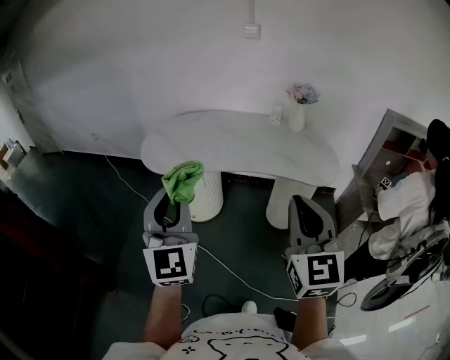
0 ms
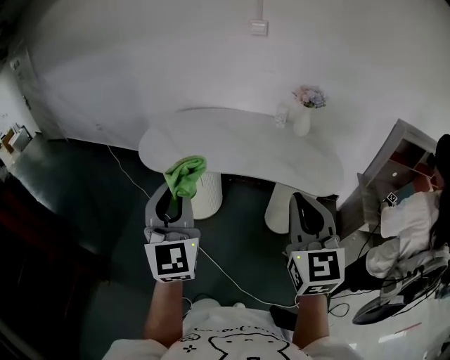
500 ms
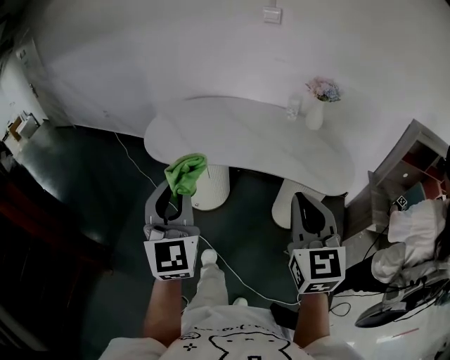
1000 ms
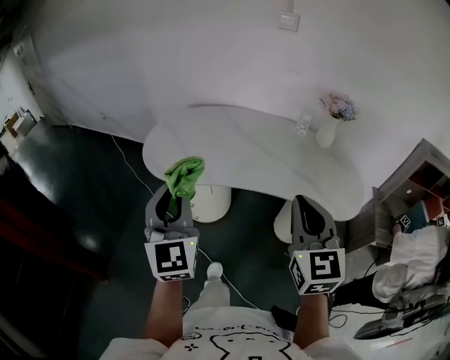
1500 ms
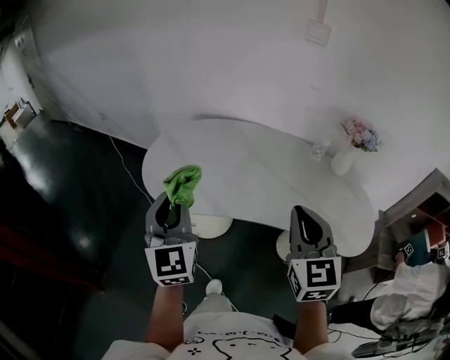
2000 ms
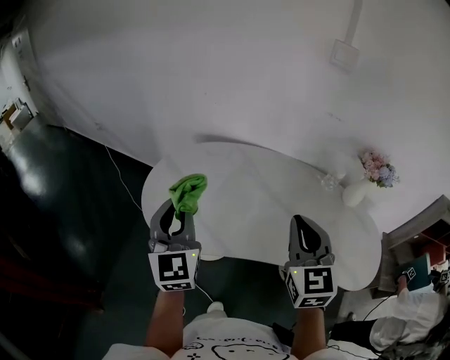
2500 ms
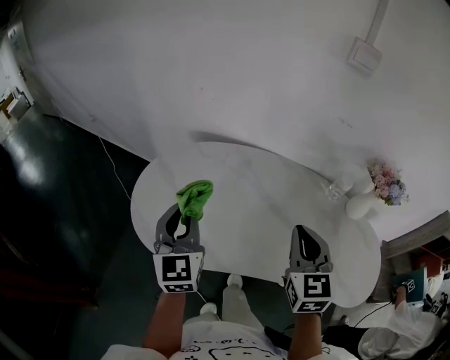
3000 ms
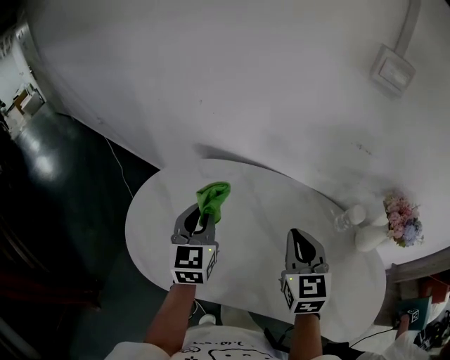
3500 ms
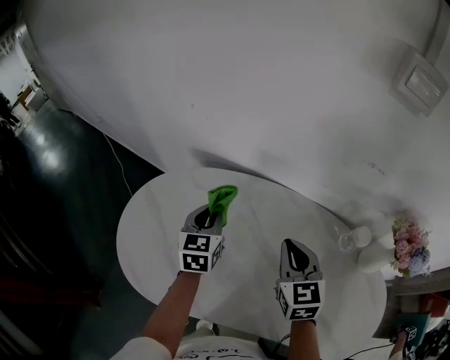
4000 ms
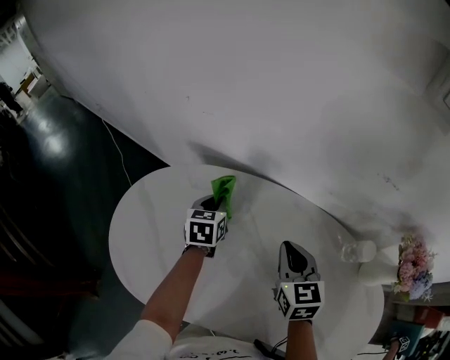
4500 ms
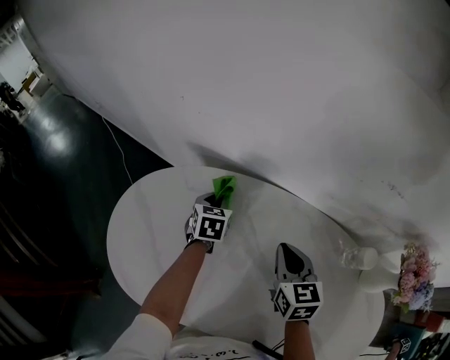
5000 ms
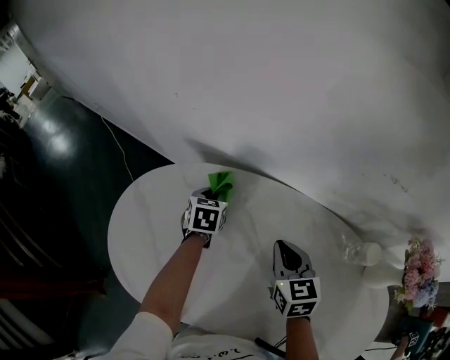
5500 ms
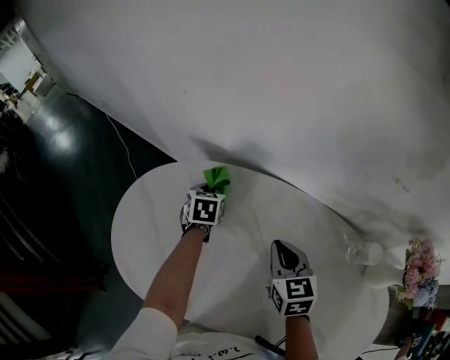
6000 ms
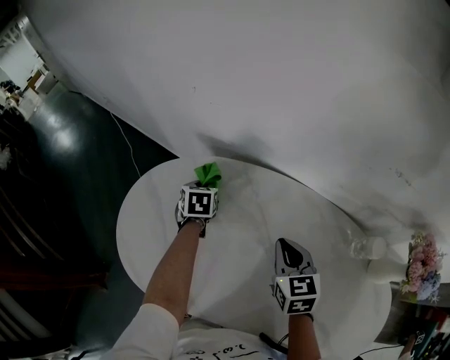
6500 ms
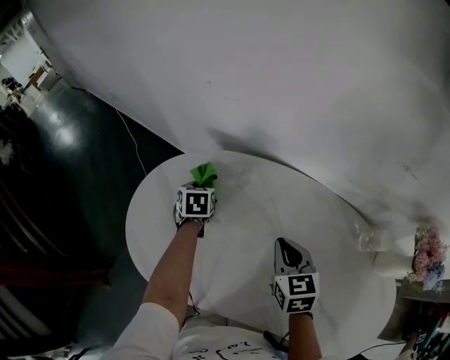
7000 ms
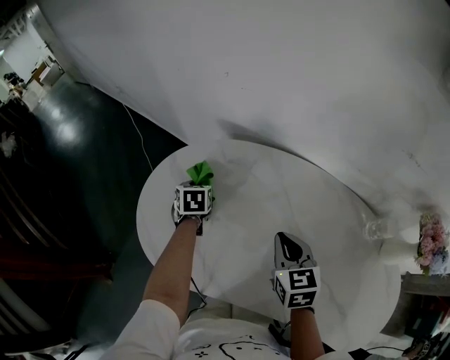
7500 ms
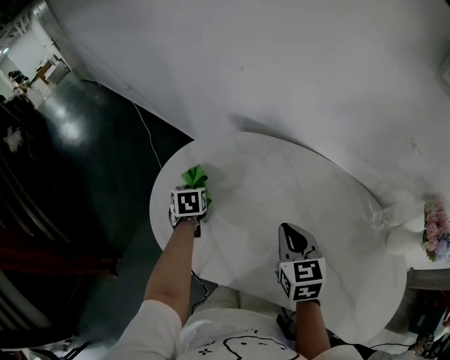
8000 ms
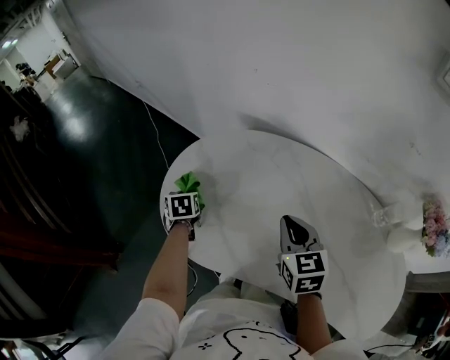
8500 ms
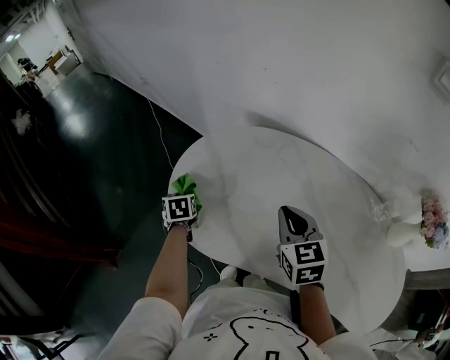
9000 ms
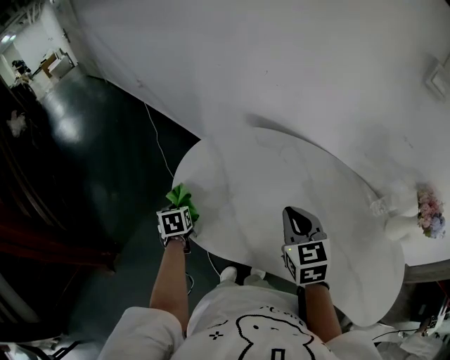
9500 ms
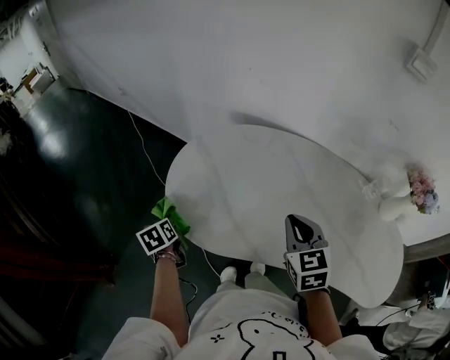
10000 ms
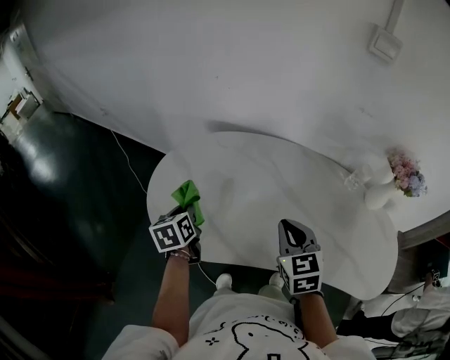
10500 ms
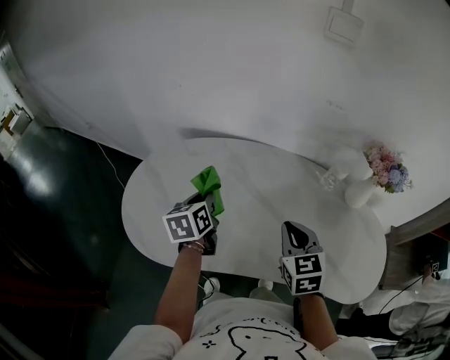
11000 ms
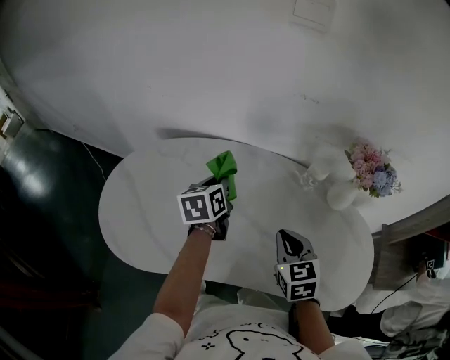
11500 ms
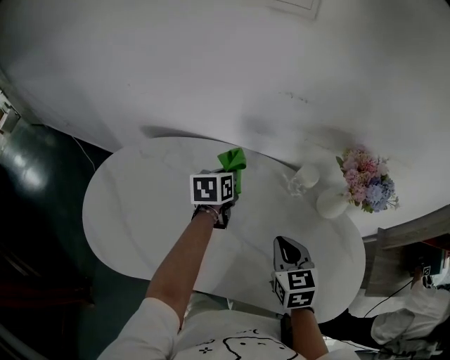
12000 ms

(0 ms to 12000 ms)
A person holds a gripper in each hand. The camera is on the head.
0 ms - 2000 ms: The two grippers go roughly 35 cm forward.
2000 ms - 4000 ms: The pair of grippers is taken forward, roughly 40 cm. The left gripper is displaced downward by about 20 cm, and changes its angle by roughly 30 degrees. The right gripper rotates about 20 degrees.
4000 ms - 6000 ms: The left gripper heads downward and forward, covering approximately 20 cm, and rotates approximately 30 degrees; the right gripper moves downward, roughly 10 cm.
6000 ms - 8000 ms: The right gripper is displaced to the left and backward by about 15 cm, while the left gripper heads to the left and backward, covering approximately 25 cm.
8000 ms - 10000 ms: The left gripper moves to the left and backward, approximately 25 cm, and swivels about 20 degrees; the right gripper goes some 10 cm backward and to the left.
10000 ms - 12000 ms: The right gripper changes place by some 35 cm, while the left gripper changes place by about 60 cm, and changes its angle by approximately 50 degrees.

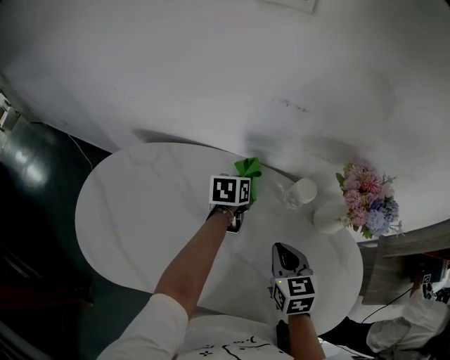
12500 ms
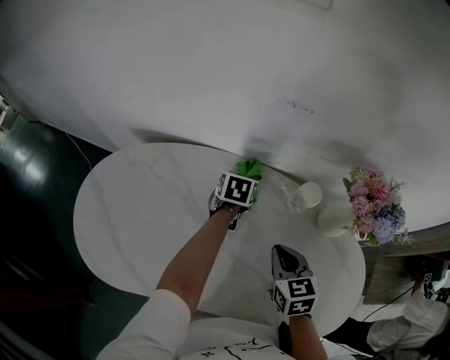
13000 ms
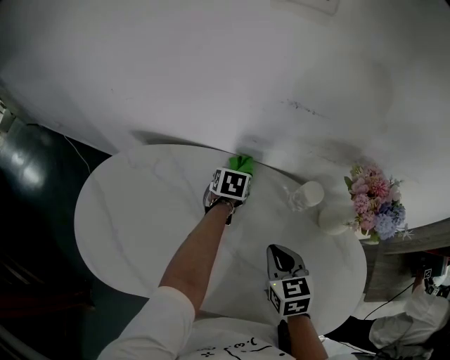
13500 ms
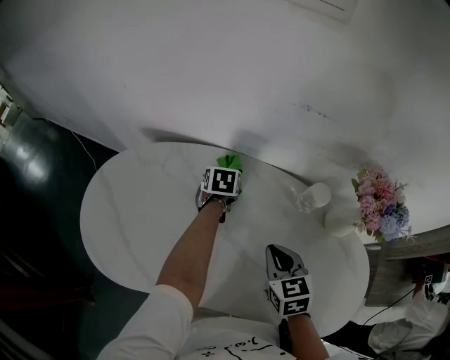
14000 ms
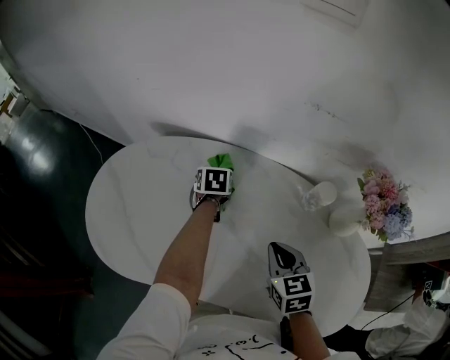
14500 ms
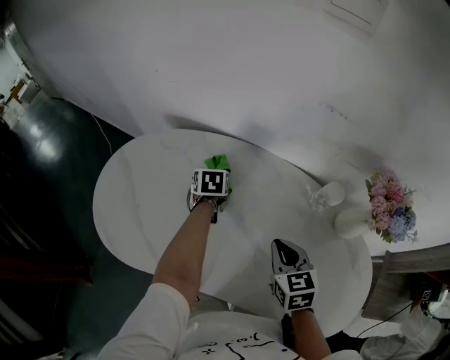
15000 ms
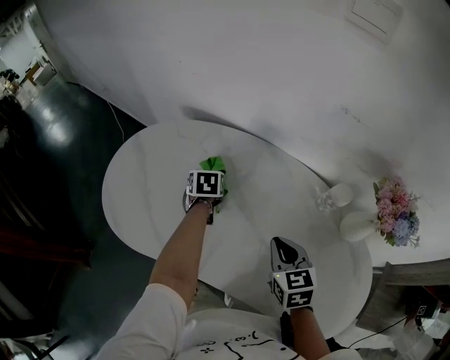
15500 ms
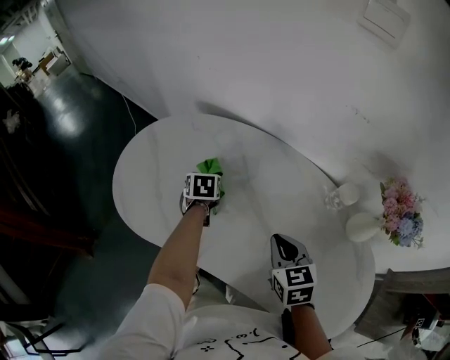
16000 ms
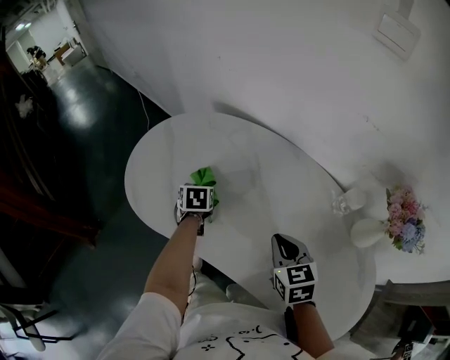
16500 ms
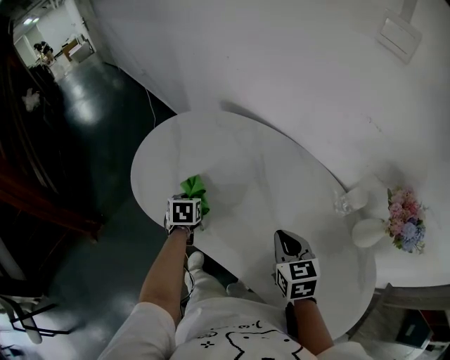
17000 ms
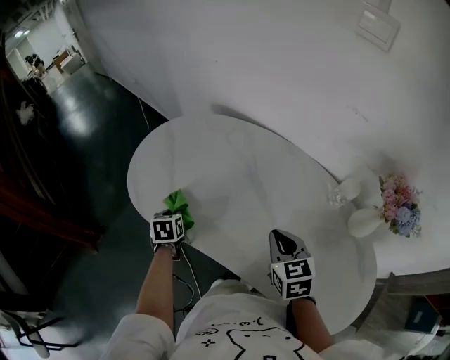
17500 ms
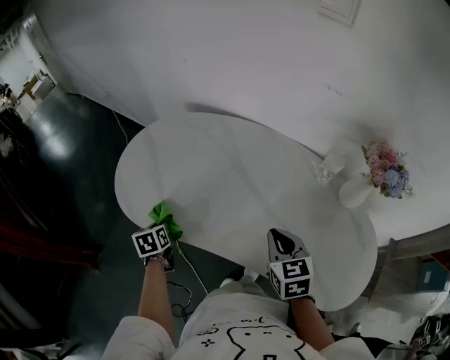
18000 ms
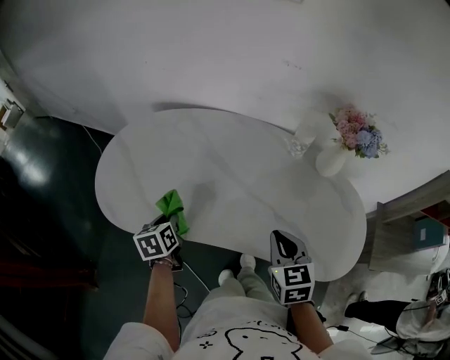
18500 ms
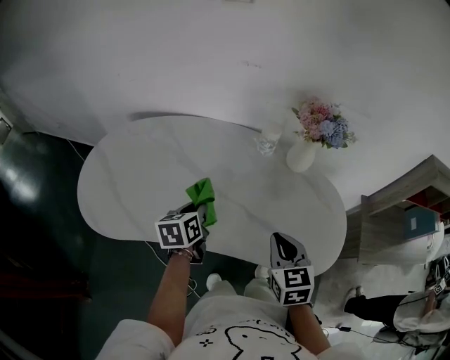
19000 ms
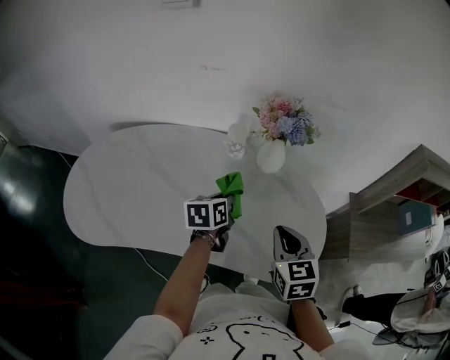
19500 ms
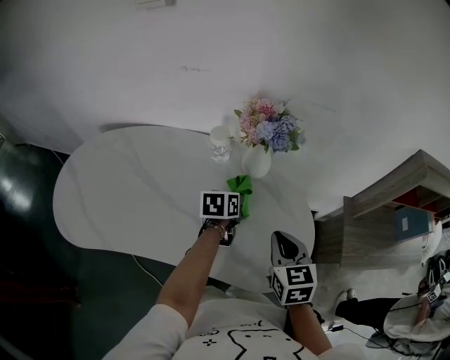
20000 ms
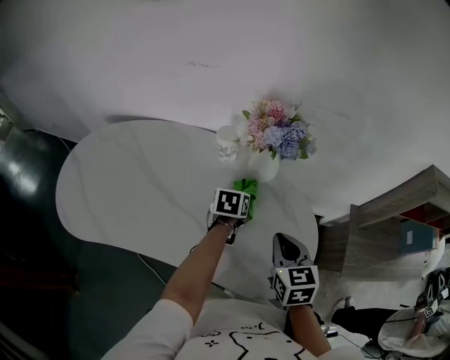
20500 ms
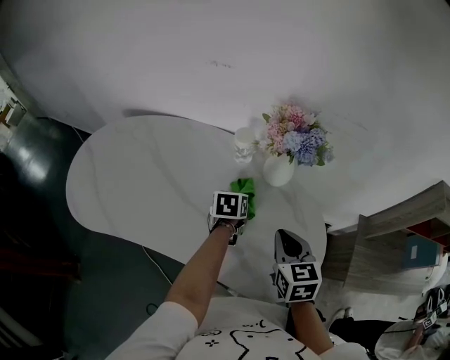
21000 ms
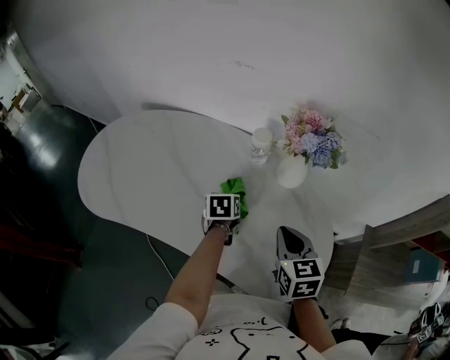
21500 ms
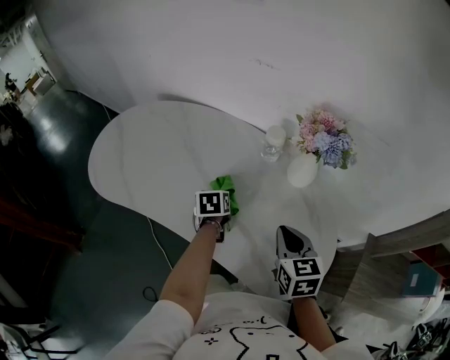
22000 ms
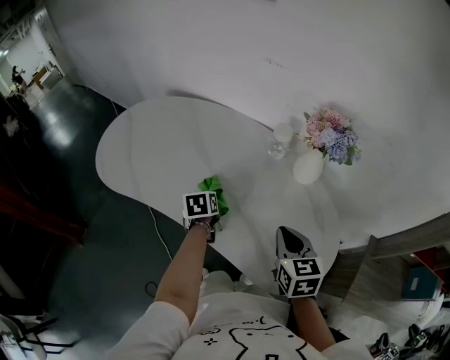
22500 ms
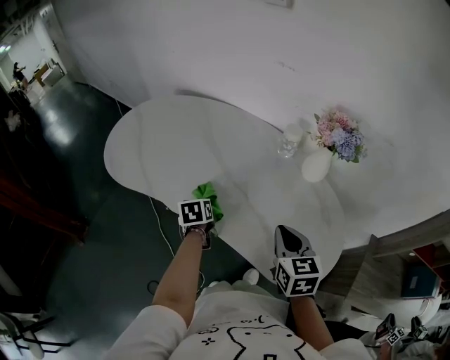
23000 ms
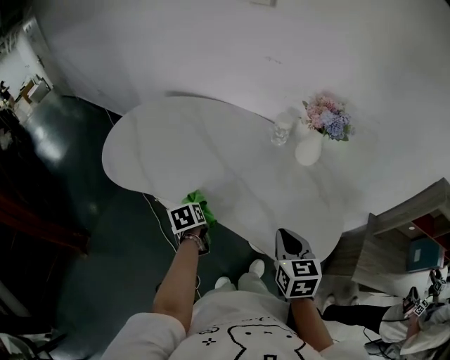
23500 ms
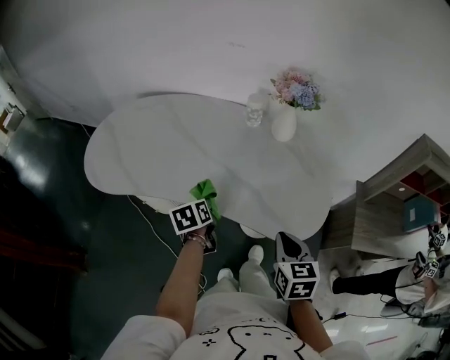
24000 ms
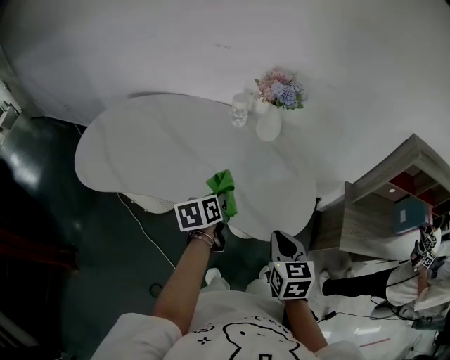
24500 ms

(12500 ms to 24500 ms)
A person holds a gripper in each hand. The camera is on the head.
12500 ms - 14500 ms: The right gripper goes roughly 5 cm to the left. Meanwhile the left gripper goes some 15 cm to the left, and rotates approximately 20 degrees.
14500 ms - 16500 ms: The right gripper heads to the left, covering roughly 10 cm. Meanwhile the left gripper travels to the left and backward by approximately 25 cm, and turns by approximately 20 degrees.
16500 ms - 18500 ms: The right gripper moves about 15 cm, and turns by about 30 degrees, while the left gripper shifts by about 15 cm.
18500 ms - 20500 ms: The left gripper changes place by some 50 cm, and turns by about 30 degrees; the right gripper moves approximately 25 cm.
20500 ms - 22500 ms: The right gripper changes place by approximately 10 cm, while the left gripper moves about 25 cm, and swivels roughly 40 degrees.
22500 ms - 24500 ms: The left gripper changes place by approximately 20 cm, and rotates approximately 30 degrees. The right gripper ends up about 20 cm from where it was.

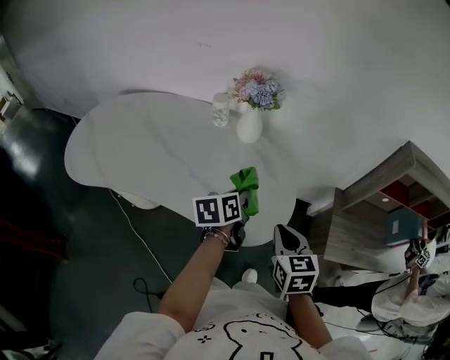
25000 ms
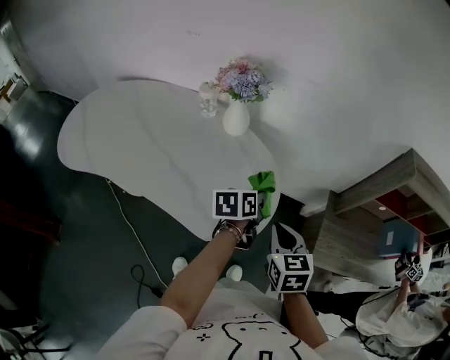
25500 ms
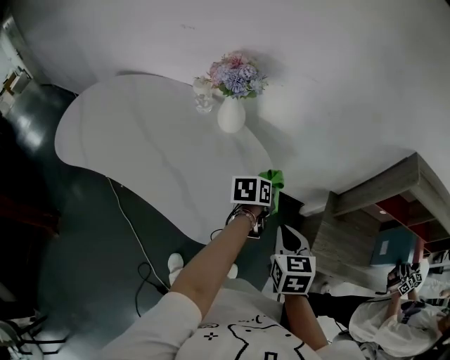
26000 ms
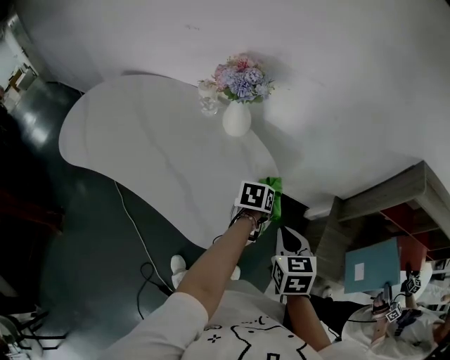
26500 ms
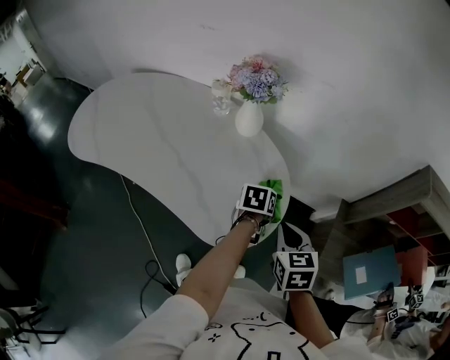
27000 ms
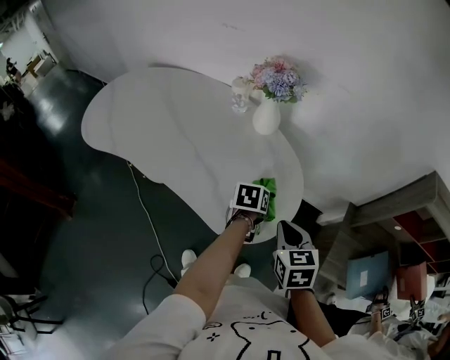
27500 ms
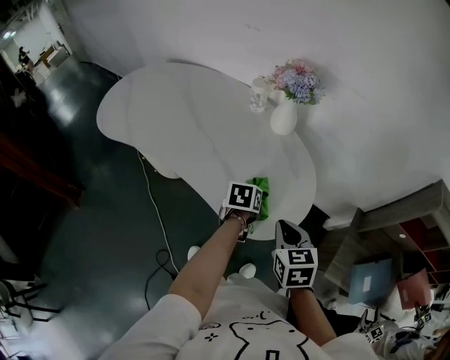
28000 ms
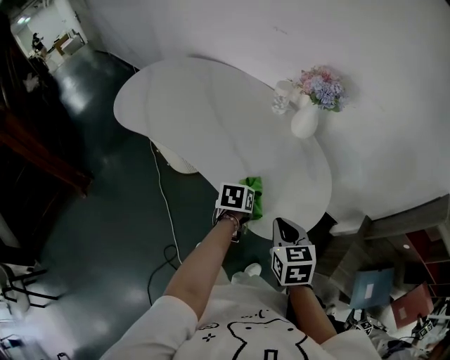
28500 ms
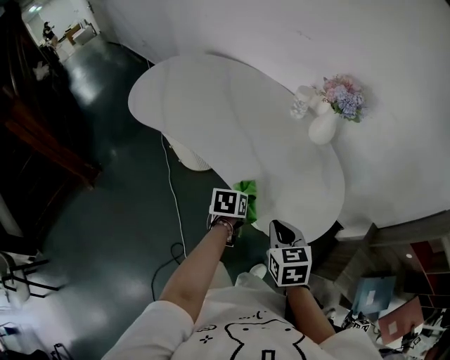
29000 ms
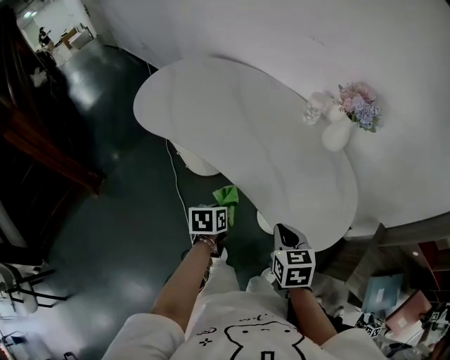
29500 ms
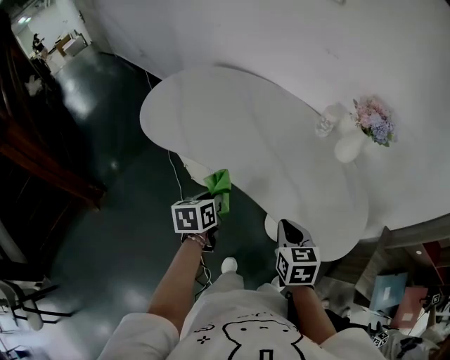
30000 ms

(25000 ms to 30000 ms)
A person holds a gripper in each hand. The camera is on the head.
25000 ms - 27500 ms: The right gripper goes to the right and returns, roughly 10 cm each way; the left gripper is displaced downward and to the right by some 15 cm, and swivels some 20 degrees.
27500 ms - 30000 ms: The right gripper goes roughly 30 cm to the left. Meanwhile the left gripper shifts roughly 50 cm to the left, and changes its angle by some 30 degrees.
